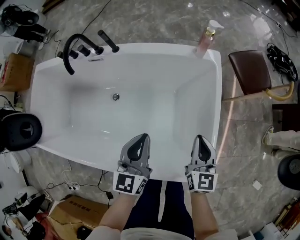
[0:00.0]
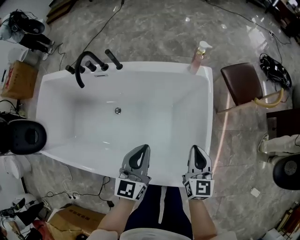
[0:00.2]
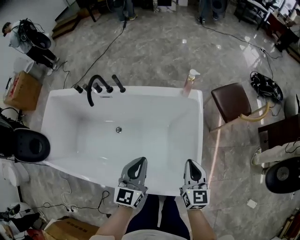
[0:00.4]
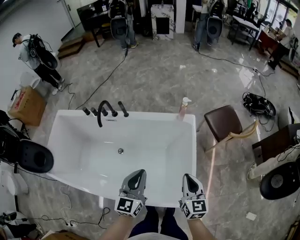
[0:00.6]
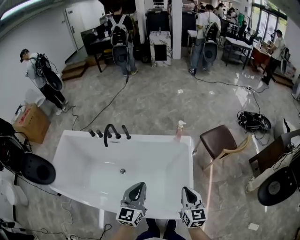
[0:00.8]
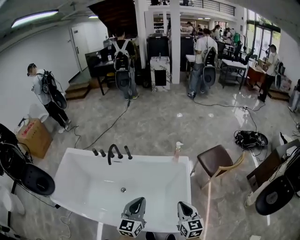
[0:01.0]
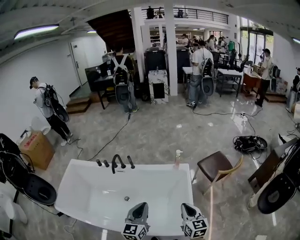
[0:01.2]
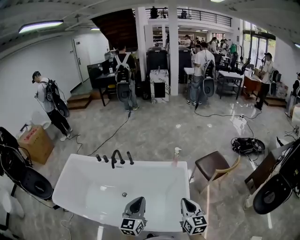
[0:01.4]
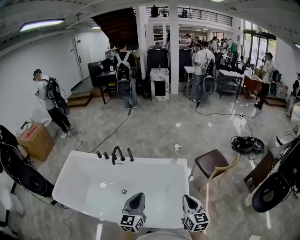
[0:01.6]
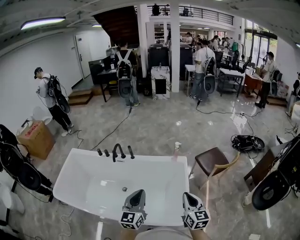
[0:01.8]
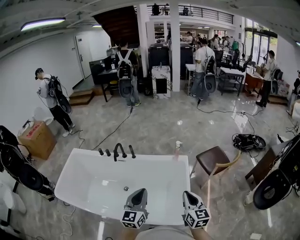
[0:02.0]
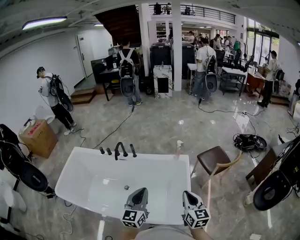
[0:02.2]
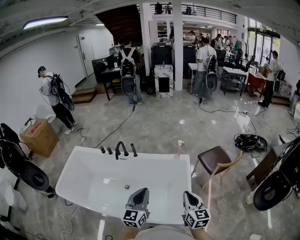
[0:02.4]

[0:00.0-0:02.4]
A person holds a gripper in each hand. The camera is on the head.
0:00.0 to 0:01.2: The grippers both shift upward by roughly 30 cm.
0:01.2 to 0:02.4: The right gripper ends up approximately 5 cm from where it was.

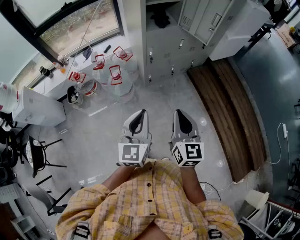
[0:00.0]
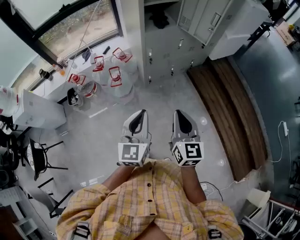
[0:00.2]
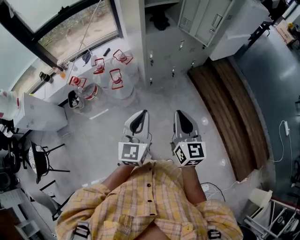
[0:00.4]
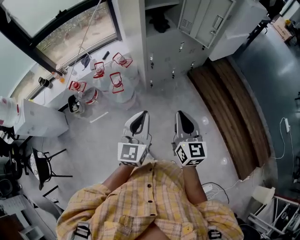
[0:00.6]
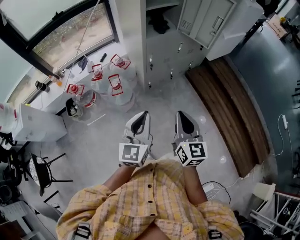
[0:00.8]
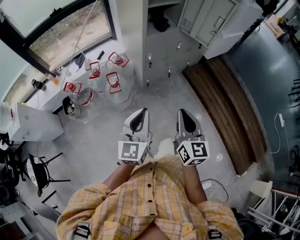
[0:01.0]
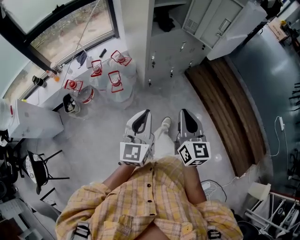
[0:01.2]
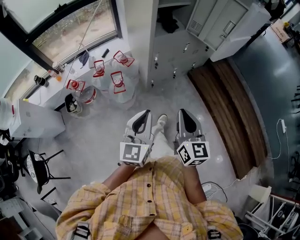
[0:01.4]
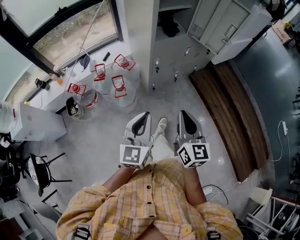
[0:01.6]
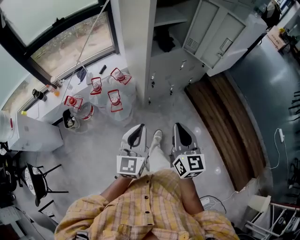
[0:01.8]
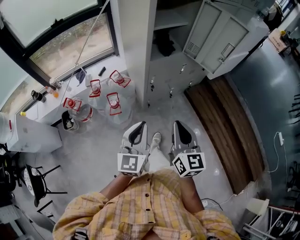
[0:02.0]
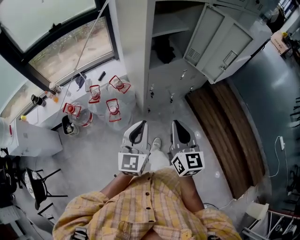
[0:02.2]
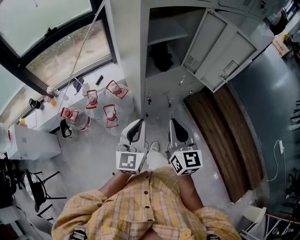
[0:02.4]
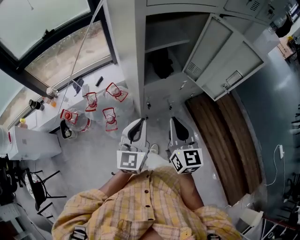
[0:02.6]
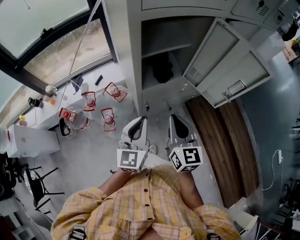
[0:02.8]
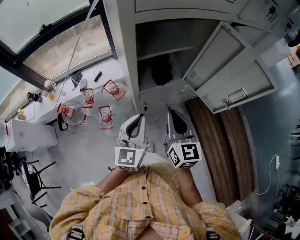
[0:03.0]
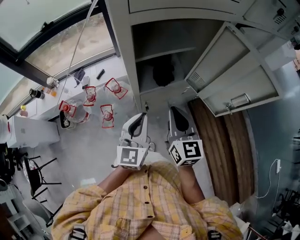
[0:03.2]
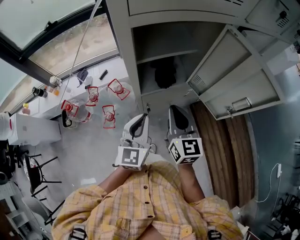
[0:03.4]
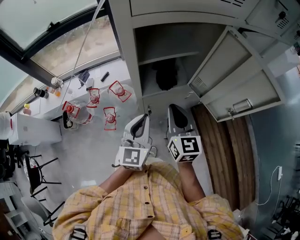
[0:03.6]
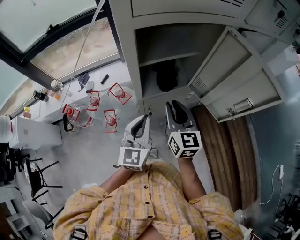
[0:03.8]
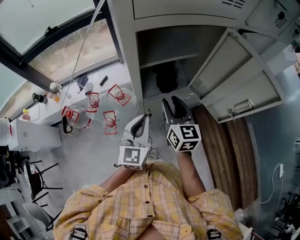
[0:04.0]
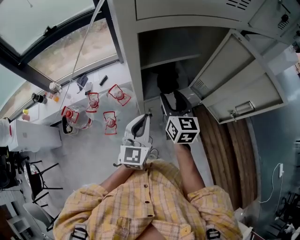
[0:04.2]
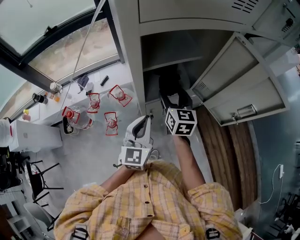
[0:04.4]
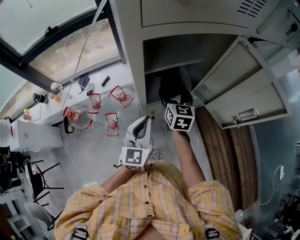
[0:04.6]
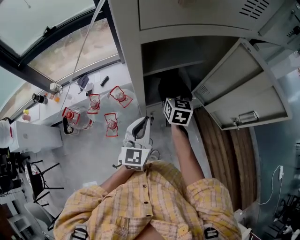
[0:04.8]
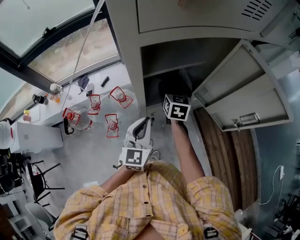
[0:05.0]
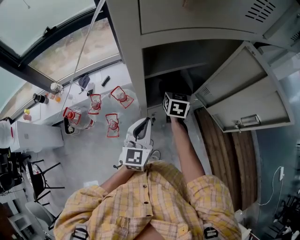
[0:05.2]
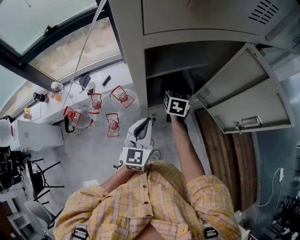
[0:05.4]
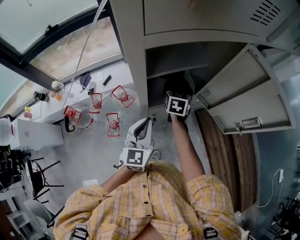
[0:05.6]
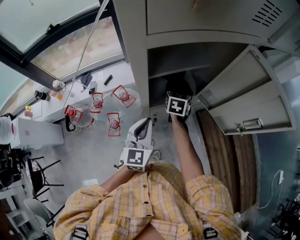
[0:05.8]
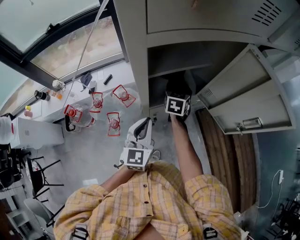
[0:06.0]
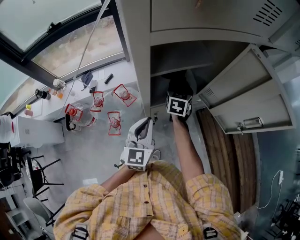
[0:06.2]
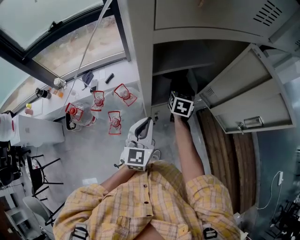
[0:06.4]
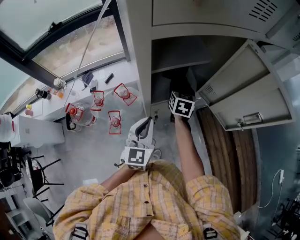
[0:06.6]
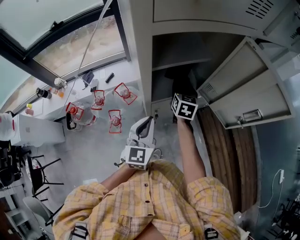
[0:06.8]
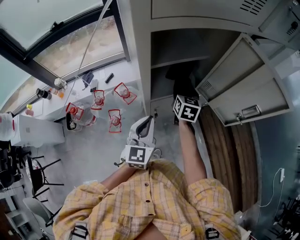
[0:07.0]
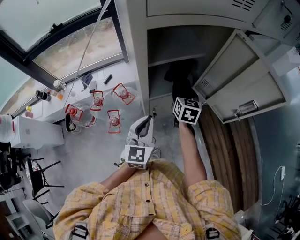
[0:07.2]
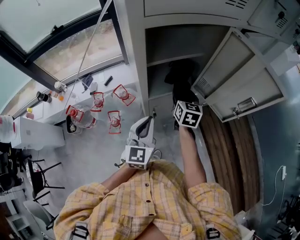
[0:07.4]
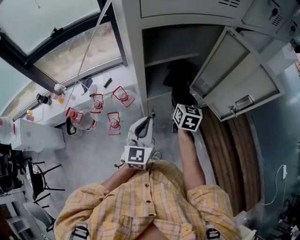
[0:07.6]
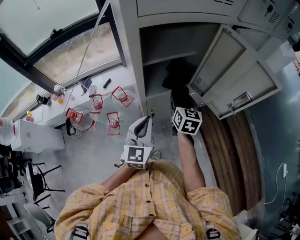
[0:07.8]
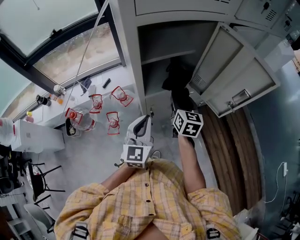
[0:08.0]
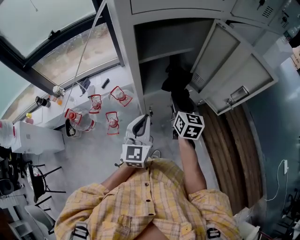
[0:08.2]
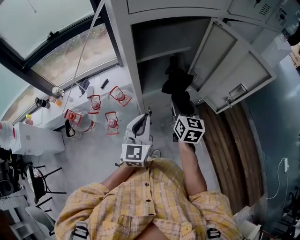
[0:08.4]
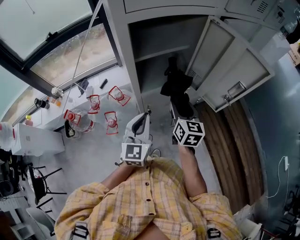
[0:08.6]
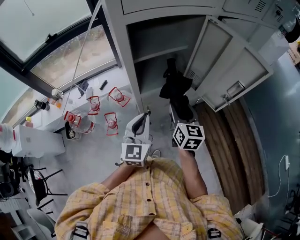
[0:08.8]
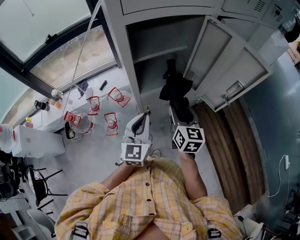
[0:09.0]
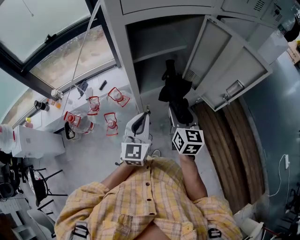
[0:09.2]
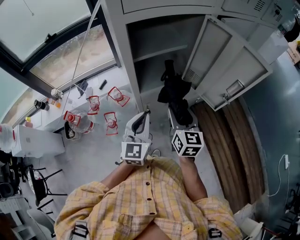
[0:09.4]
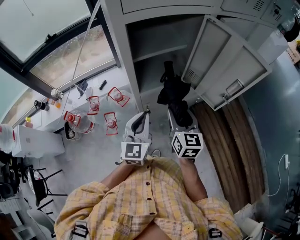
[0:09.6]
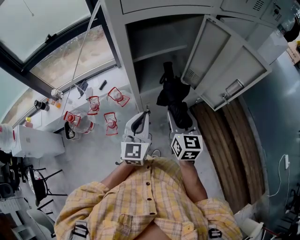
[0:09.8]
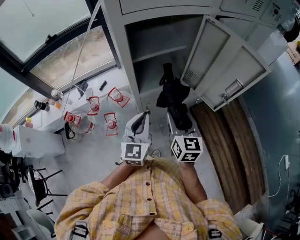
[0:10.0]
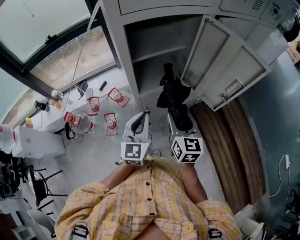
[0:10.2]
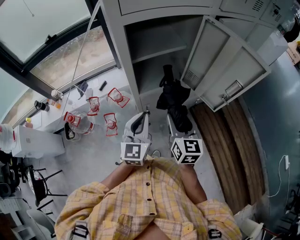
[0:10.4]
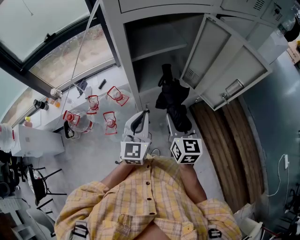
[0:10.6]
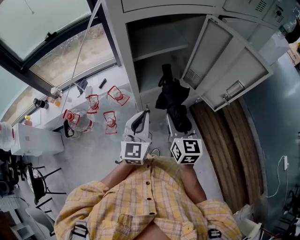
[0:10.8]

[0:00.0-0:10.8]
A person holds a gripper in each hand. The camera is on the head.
0:00.0 to 0:01.6: Both grippers move forward and to the left, roughly 10 cm.
0:01.6 to 0:03.0: The grippers both shift forward by about 35 cm.
0:03.0 to 0:04.6: The left gripper goes roughly 5 cm forward. Meanwhile the right gripper is displaced forward and downward by about 20 cm, and opens up.
0:04.6 to 0:06.2: The right gripper is displaced downward and forward by approximately 10 cm.
0:06.2 to 0:07.8: The left gripper heads backward, covering roughly 5 cm. The right gripper shifts some 15 cm backward and upward.
0:07.8 to 0:09.2: The right gripper heads backward, covering some 10 cm.
0:09.2 to 0:10.8: The grippers make only small movements.

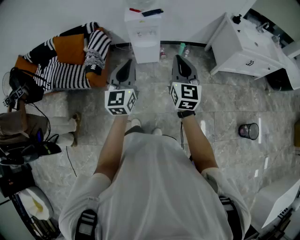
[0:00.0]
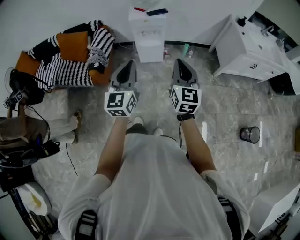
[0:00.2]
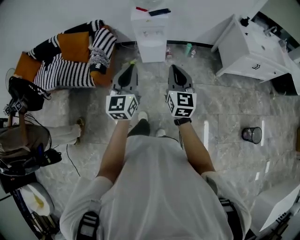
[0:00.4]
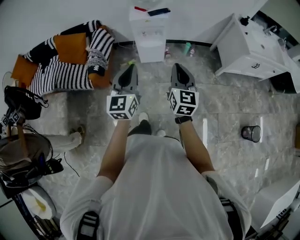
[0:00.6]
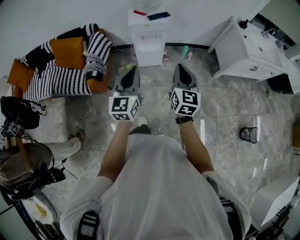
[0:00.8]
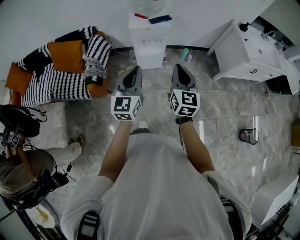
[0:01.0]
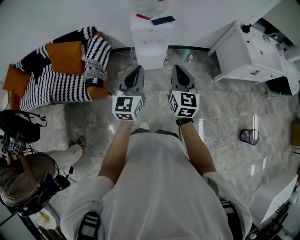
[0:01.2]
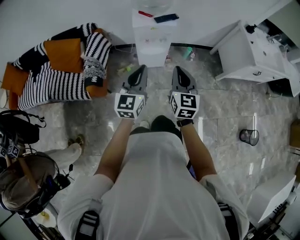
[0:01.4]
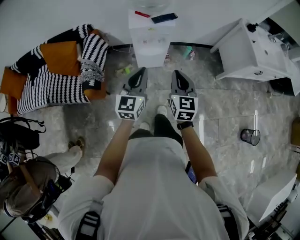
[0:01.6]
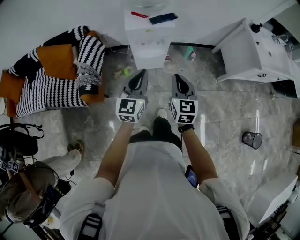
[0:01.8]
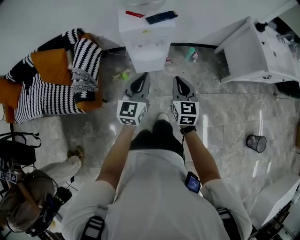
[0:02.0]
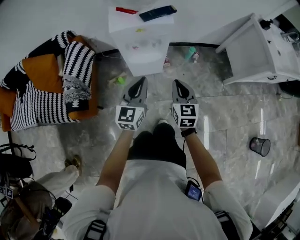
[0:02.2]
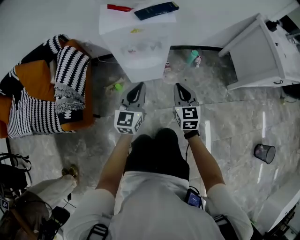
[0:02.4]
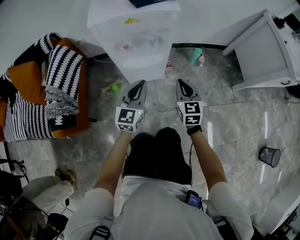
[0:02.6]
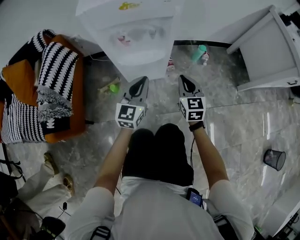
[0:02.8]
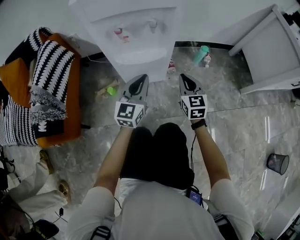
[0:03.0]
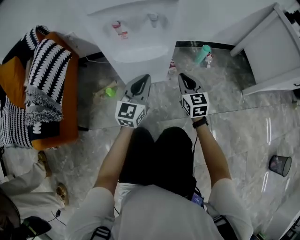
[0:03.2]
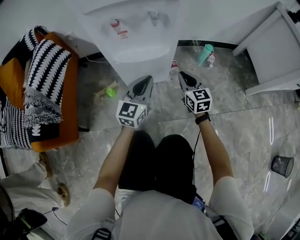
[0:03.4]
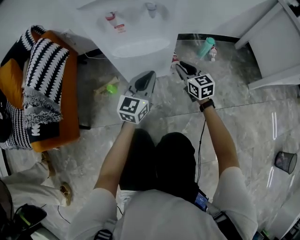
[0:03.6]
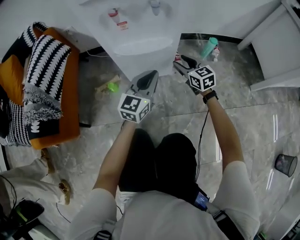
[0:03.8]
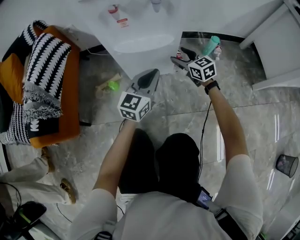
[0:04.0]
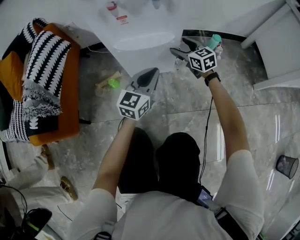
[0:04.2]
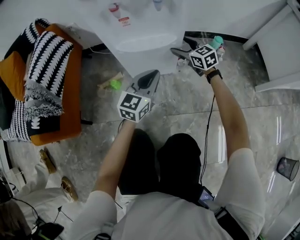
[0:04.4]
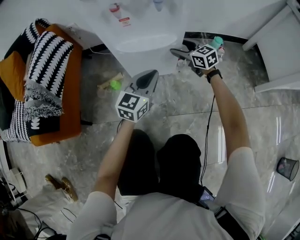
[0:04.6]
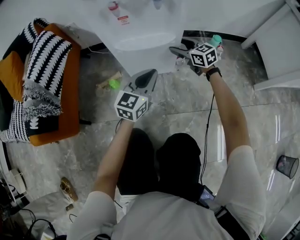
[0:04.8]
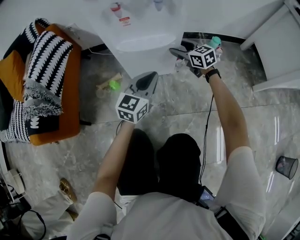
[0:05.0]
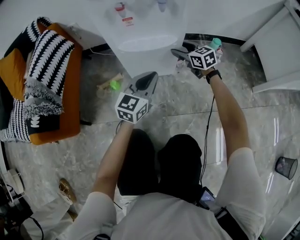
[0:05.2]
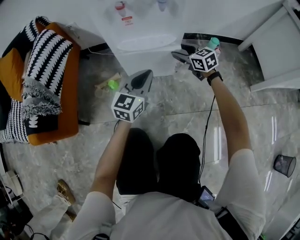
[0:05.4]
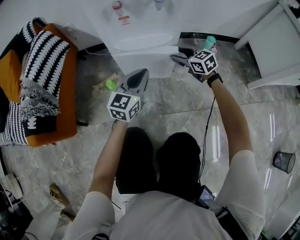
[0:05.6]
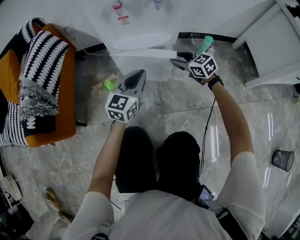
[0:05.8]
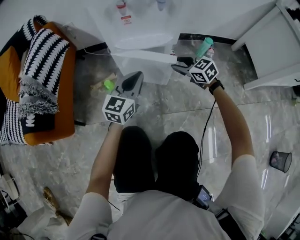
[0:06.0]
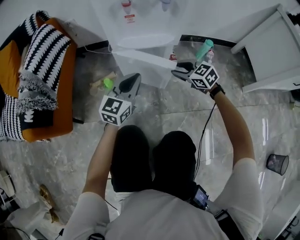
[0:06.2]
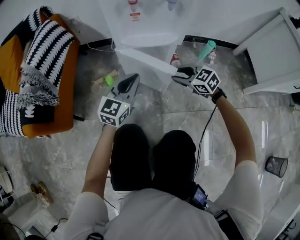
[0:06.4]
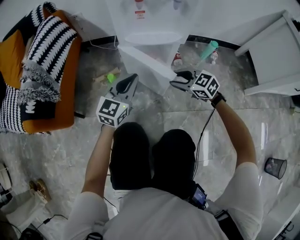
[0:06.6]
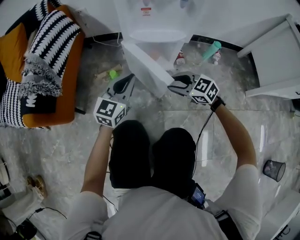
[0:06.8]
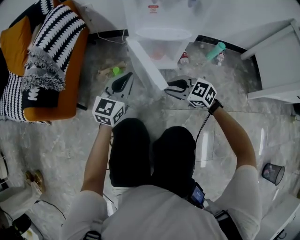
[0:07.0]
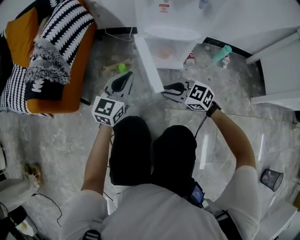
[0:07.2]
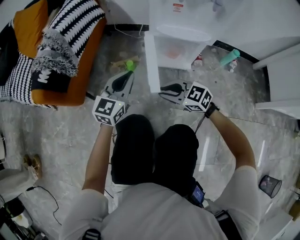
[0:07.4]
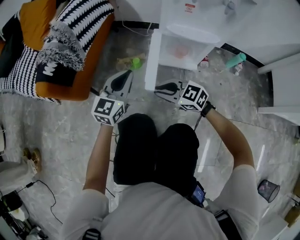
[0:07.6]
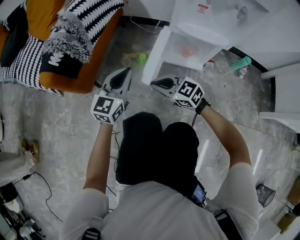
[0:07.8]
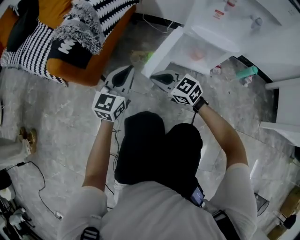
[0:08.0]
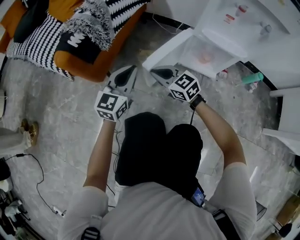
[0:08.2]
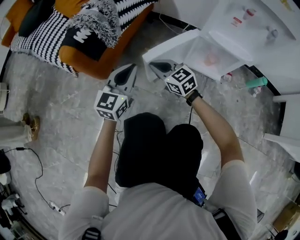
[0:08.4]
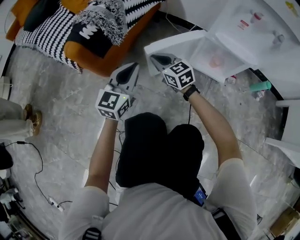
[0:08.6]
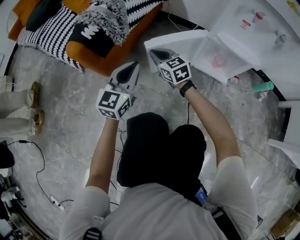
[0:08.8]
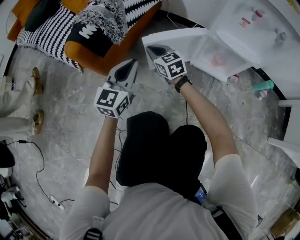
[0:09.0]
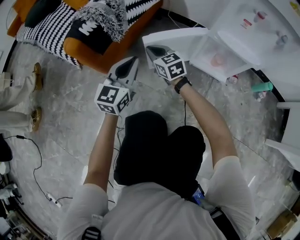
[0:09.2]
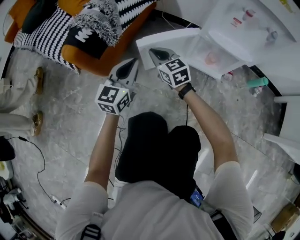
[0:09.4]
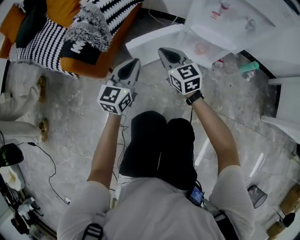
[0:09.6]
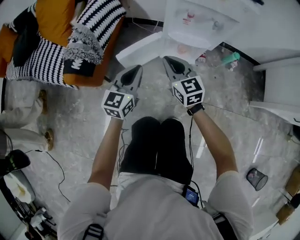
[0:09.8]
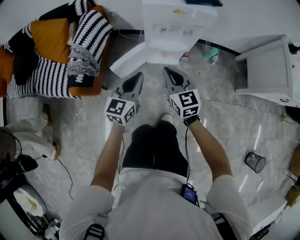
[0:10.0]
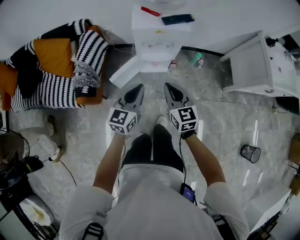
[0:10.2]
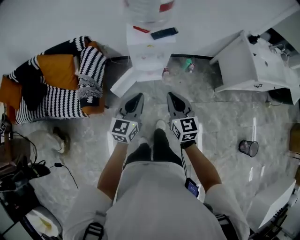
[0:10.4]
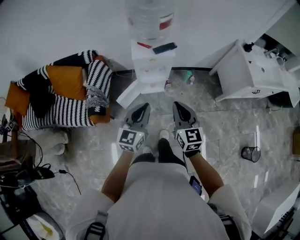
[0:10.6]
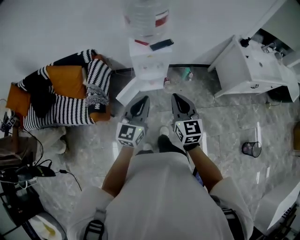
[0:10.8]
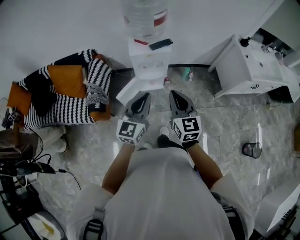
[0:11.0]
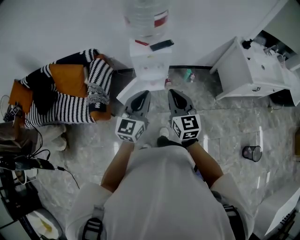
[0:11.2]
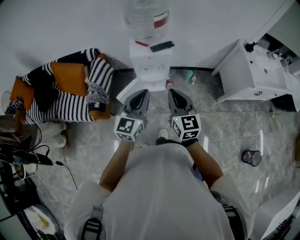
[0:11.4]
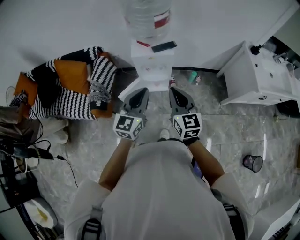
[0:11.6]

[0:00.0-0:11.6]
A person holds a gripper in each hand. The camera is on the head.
0:00.0 to 0:01.4: The left gripper shifts some 20 cm forward and to the left; the right gripper is displaced forward, to the left and downward by some 25 cm.
0:01.4 to 0:02.8: The two grippers go approximately 60 cm downward and forward.
0:02.8 to 0:04.4: The right gripper heads forward and downward, covering some 20 cm, swivels roughly 30 degrees, and opens. The left gripper travels downward by roughly 15 cm.
0:04.4 to 0:05.8: The right gripper shifts some 10 cm backward, and closes.
0:05.8 to 0:07.2: The left gripper is displaced to the left by about 15 cm. Meanwhile the right gripper travels to the left and backward by approximately 25 cm, and swivels roughly 30 degrees.
0:07.2 to 0:08.8: The left gripper is displaced to the left by approximately 20 cm, and changes its angle by about 20 degrees. Meanwhile the right gripper goes some 30 cm to the left and forward.
0:08.8 to 0:10.2: Both grippers travel together upward, some 40 cm. The right gripper swivels about 40 degrees. Meanwhile the left gripper turns by about 30 degrees.
0:10.2 to 0:11.6: Both grippers move upward, some 25 cm.
